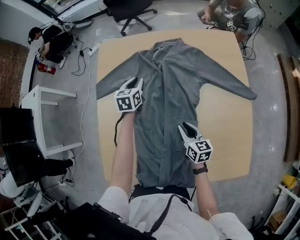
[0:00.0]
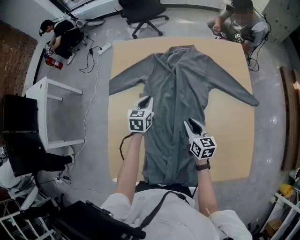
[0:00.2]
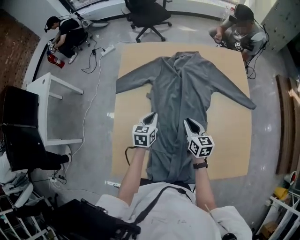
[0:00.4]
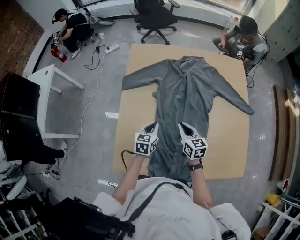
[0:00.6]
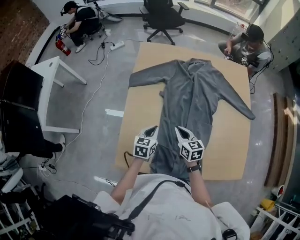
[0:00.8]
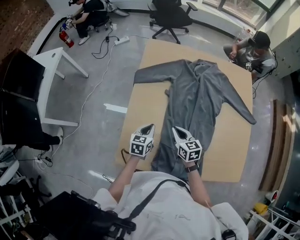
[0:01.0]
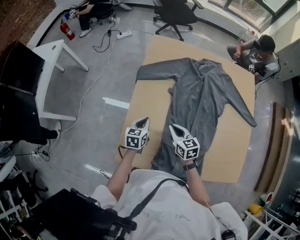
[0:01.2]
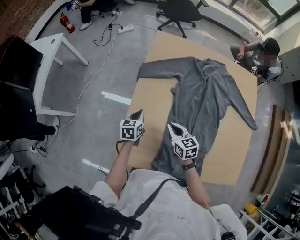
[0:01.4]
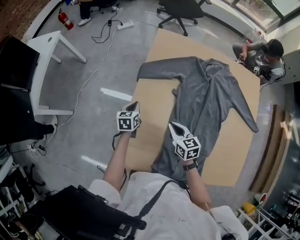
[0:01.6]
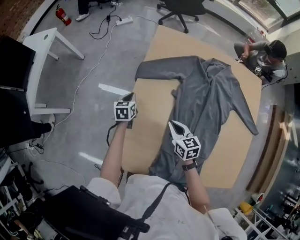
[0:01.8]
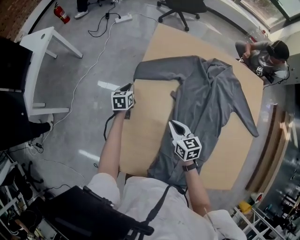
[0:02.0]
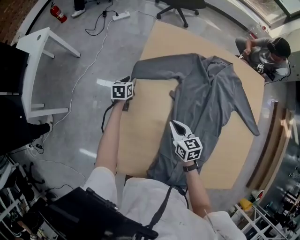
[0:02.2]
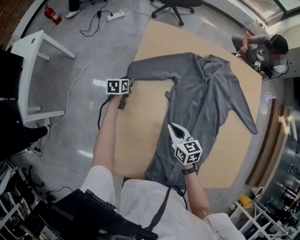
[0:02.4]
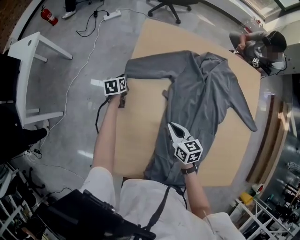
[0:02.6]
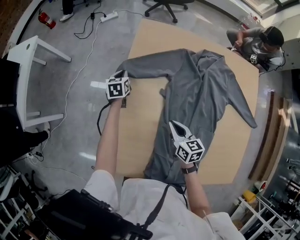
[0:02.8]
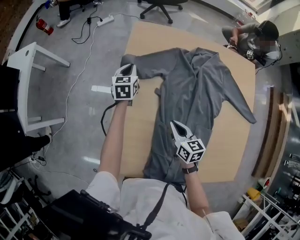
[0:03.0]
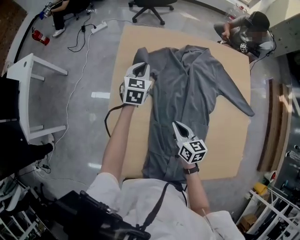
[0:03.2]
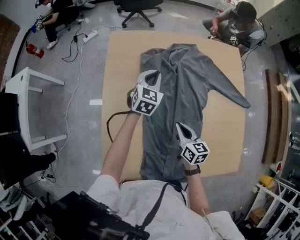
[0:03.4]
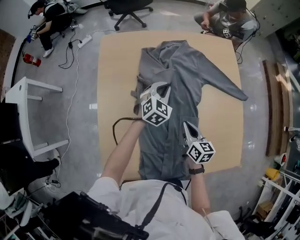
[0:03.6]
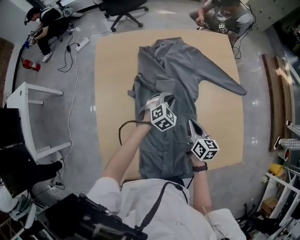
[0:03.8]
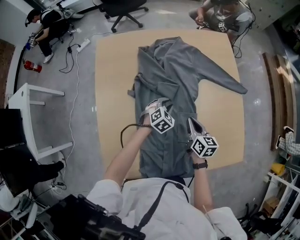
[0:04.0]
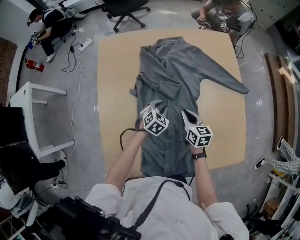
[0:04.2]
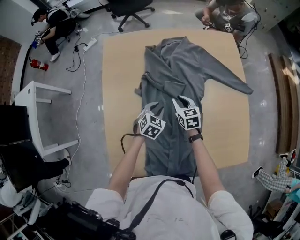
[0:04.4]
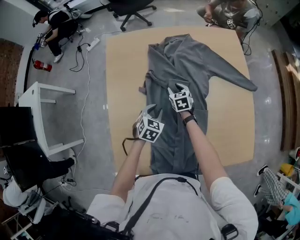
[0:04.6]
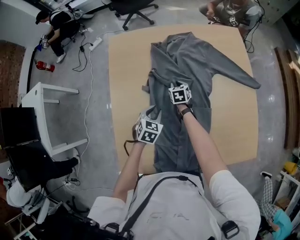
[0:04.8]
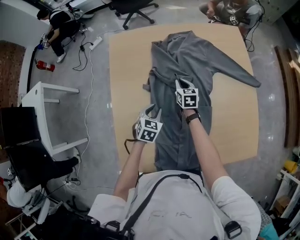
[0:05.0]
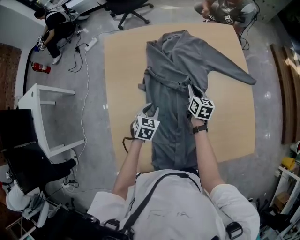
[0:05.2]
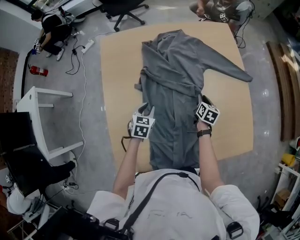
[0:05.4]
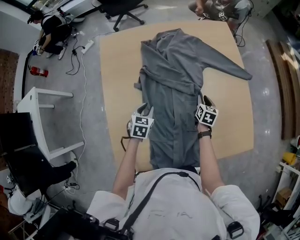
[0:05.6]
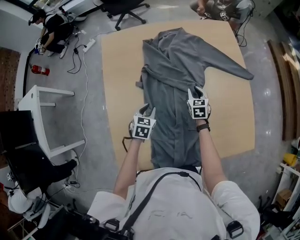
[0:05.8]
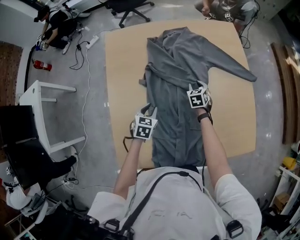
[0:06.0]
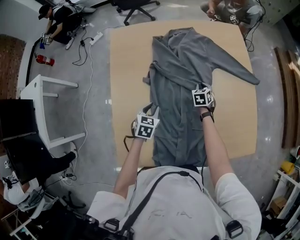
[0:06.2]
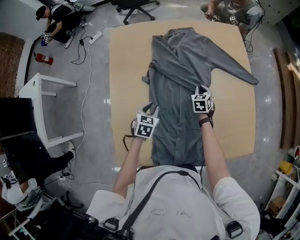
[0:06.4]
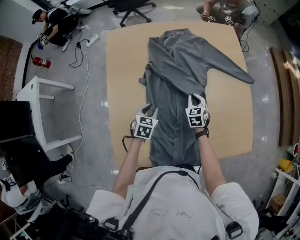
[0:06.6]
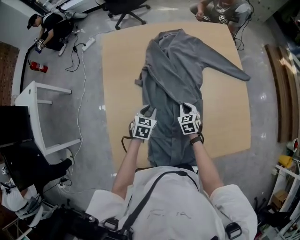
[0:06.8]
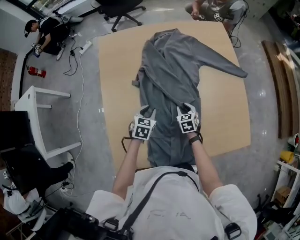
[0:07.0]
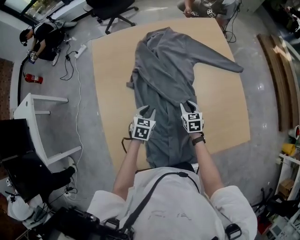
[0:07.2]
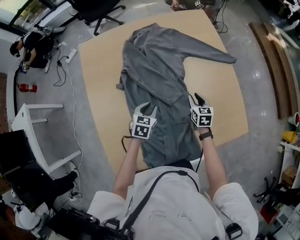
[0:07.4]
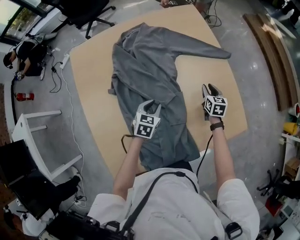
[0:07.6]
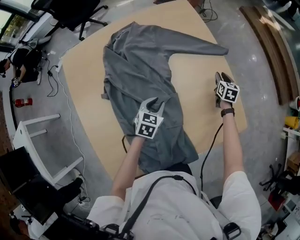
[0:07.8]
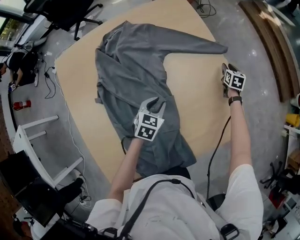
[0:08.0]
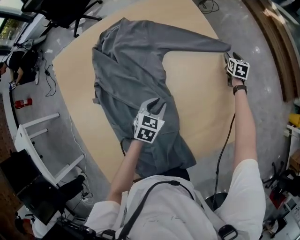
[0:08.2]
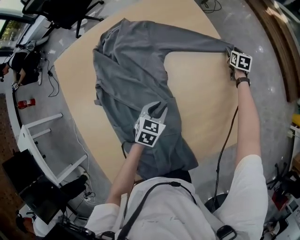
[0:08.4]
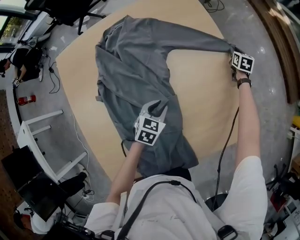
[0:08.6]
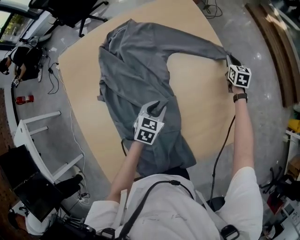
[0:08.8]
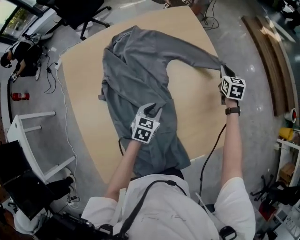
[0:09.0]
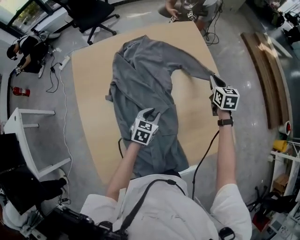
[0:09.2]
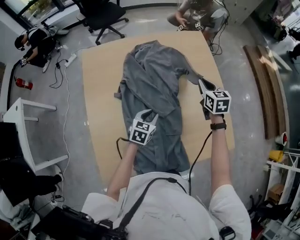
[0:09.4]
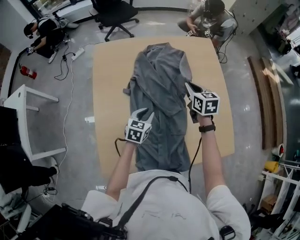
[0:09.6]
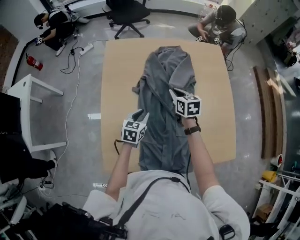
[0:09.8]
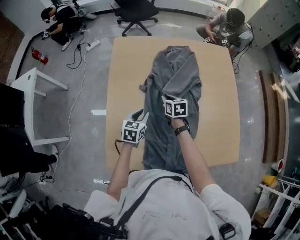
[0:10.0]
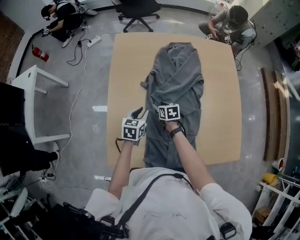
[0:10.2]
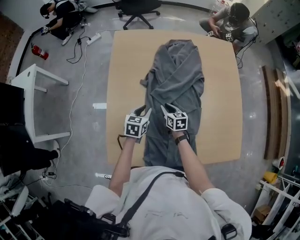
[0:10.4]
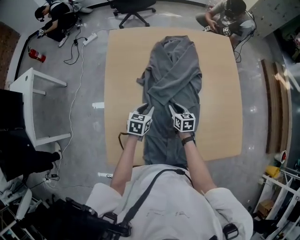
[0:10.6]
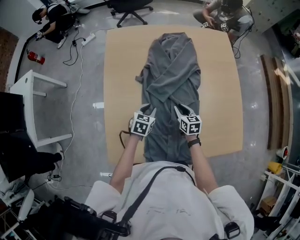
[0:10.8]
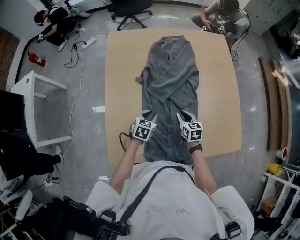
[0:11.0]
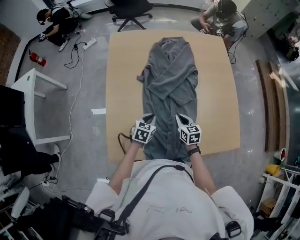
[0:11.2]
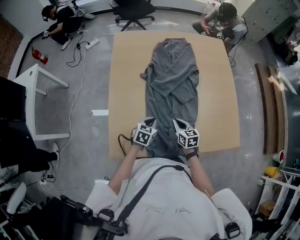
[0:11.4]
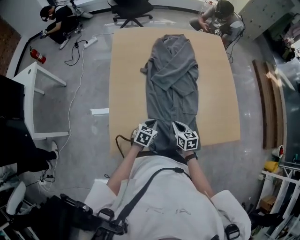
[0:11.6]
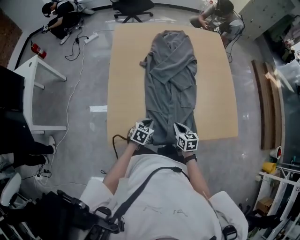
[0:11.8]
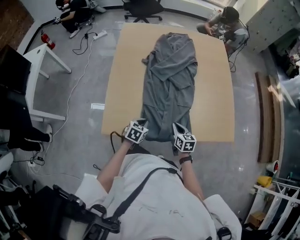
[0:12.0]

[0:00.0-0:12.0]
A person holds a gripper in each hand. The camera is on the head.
0:00.0 to 0:01.6: The right gripper goes some 25 cm to the left, and rotates roughly 30 degrees, while the left gripper moves to the left and backward, approximately 35 cm, and closes its fingers.
0:01.6 to 0:03.0: The right gripper goes about 10 cm to the right; the left gripper goes some 20 cm forward and to the right, and opens, then closes again.
0:03.0 to 0:04.4: The right gripper moves roughly 15 cm. The left gripper travels upward and back again, some 10 cm each way, rotates approximately 50 degrees, and opens up.
0:04.4 to 0:06.0: The right gripper moves left and right over approximately 20 cm, changing direction 2 times, and rotates approximately 20 degrees. The left gripper heads to the left and backward, covering some 10 cm.
0:06.0 to 0:07.6: The left gripper moves to the right, roughly 15 cm. The right gripper shifts some 25 cm to the right, and rotates about 30 degrees.
0:07.6 to 0:09.0: The right gripper goes approximately 20 cm forward and upward.
0:09.0 to 0:10.4: The right gripper ends up roughly 50 cm from where it was, and swivels roughly 40 degrees. The left gripper moves some 25 cm, and turns by roughly 30 degrees.
0:10.4 to 0:12.0: The right gripper heads backward and to the right, covering approximately 30 cm. The left gripper is displaced backward by some 25 cm, and closes its fingers.

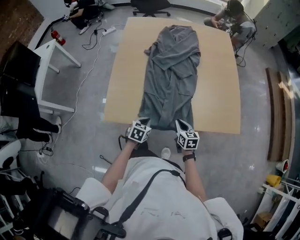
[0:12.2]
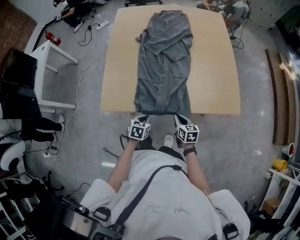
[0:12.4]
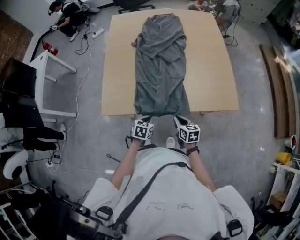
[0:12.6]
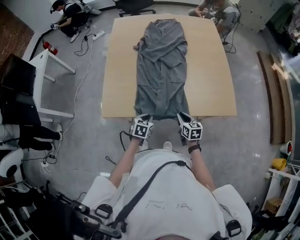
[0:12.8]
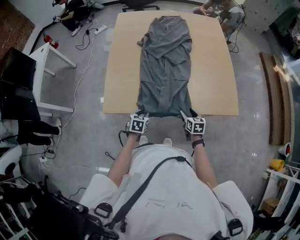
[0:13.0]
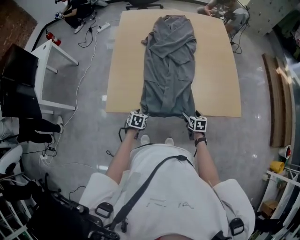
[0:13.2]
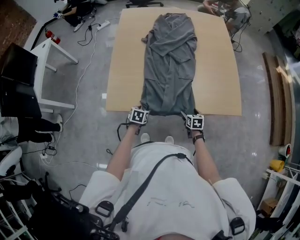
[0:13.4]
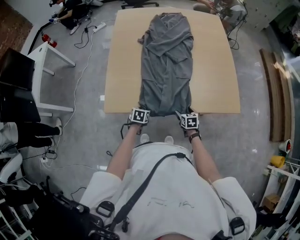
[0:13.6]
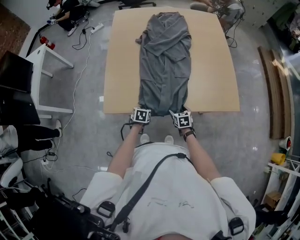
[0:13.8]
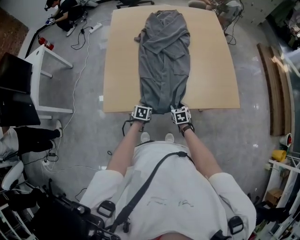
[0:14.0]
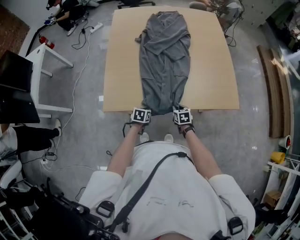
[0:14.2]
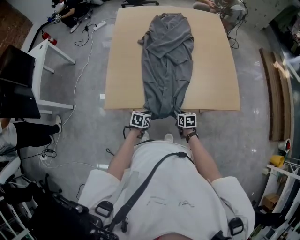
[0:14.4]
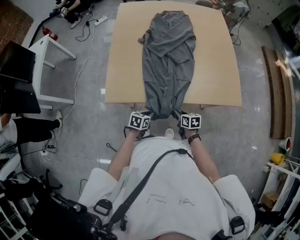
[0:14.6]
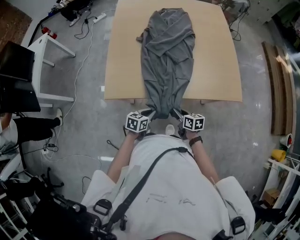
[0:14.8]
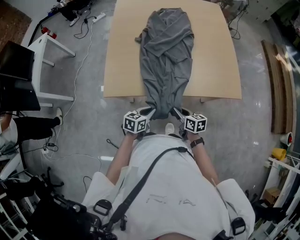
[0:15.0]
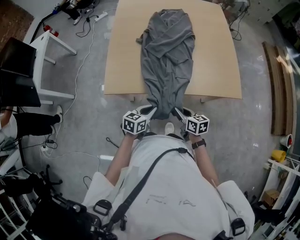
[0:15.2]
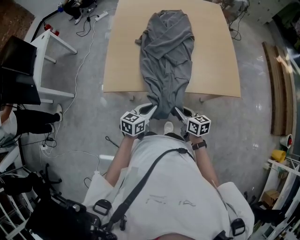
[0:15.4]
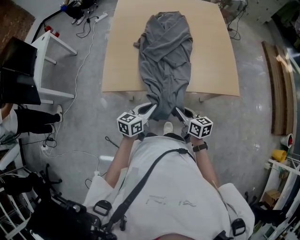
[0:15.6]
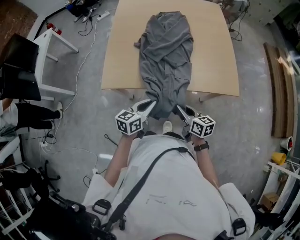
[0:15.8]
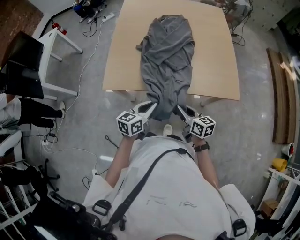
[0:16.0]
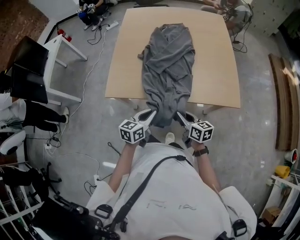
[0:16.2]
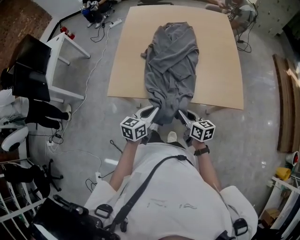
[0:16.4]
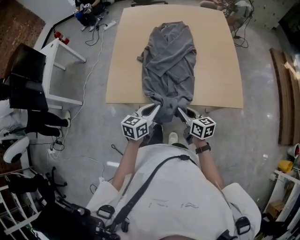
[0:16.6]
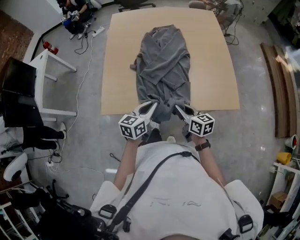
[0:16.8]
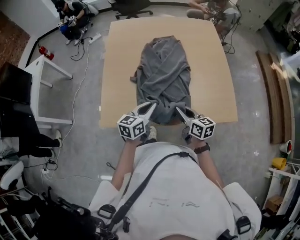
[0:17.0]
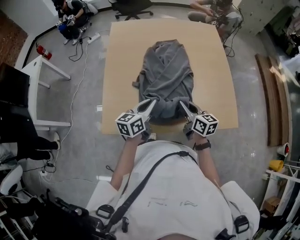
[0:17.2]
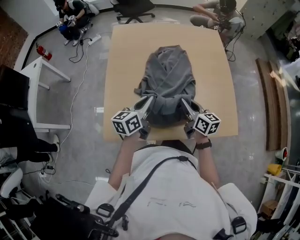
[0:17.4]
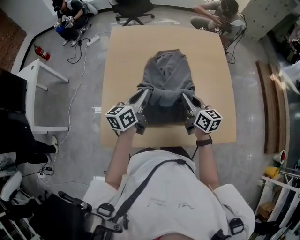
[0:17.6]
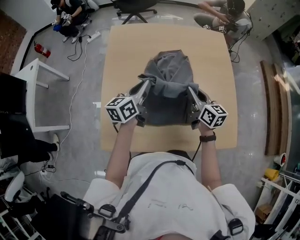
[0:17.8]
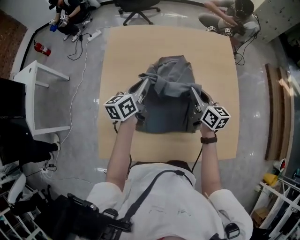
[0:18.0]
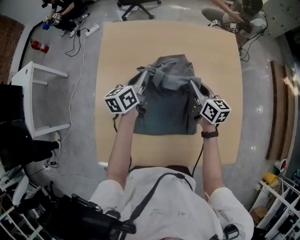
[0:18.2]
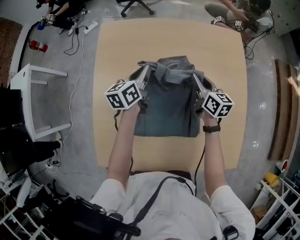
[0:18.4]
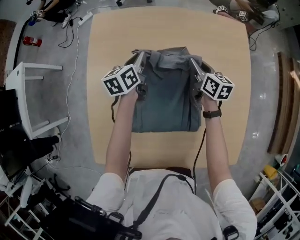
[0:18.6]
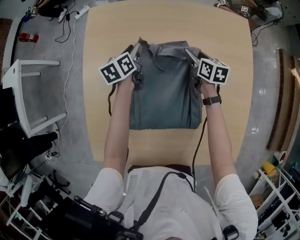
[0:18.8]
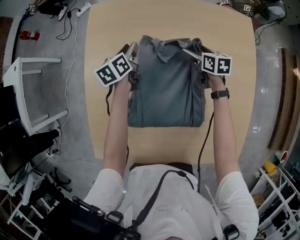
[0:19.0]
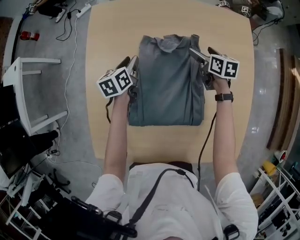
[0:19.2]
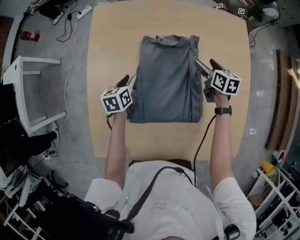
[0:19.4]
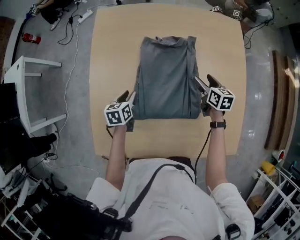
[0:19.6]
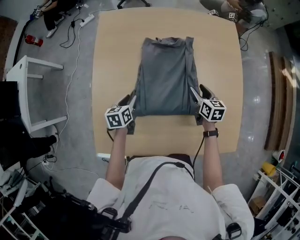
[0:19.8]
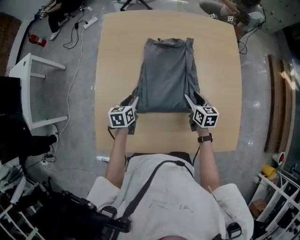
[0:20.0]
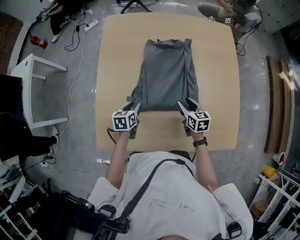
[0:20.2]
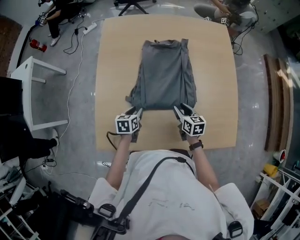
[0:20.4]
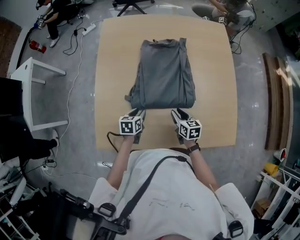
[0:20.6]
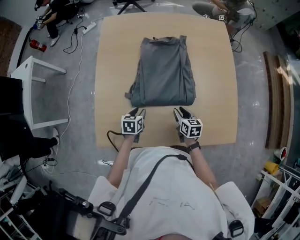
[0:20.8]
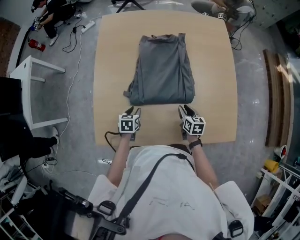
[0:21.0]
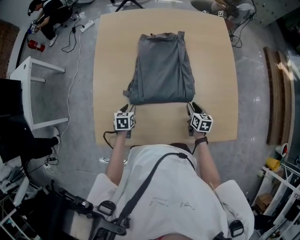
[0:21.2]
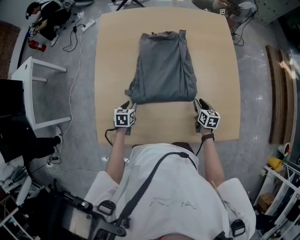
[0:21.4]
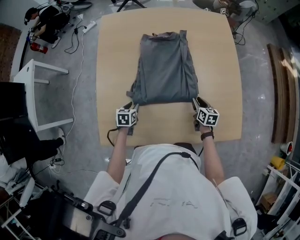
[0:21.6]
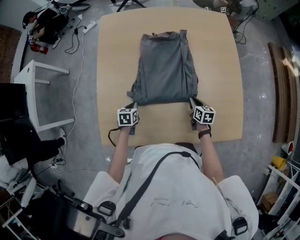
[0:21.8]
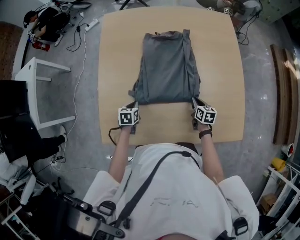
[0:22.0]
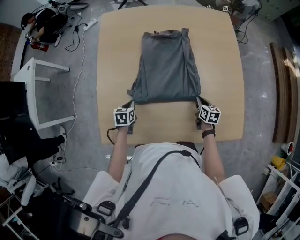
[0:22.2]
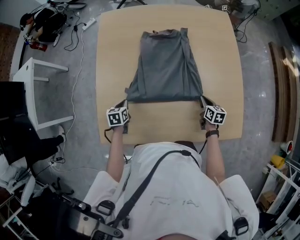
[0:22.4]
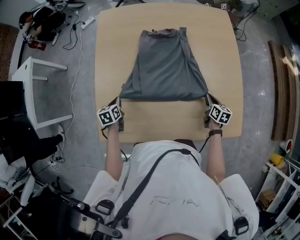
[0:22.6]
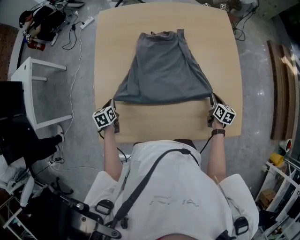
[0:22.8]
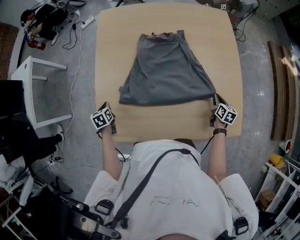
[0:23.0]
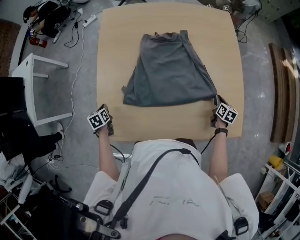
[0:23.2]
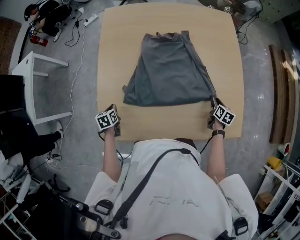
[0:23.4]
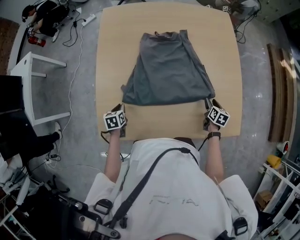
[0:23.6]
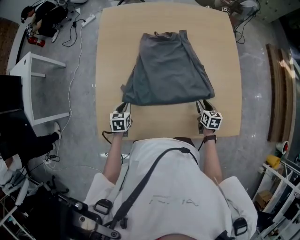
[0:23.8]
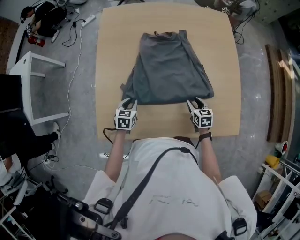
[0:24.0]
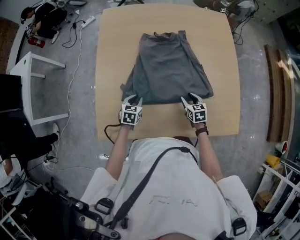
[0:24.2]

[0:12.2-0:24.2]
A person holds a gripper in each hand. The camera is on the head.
0:12.2 to 0:13.8: The grippers both shift downward by some 10 cm. The right gripper opens. Meanwhile the left gripper goes to the right and returns, roughly 5 cm each way, and opens.
0:13.8 to 0:15.2: The right gripper shifts roughly 15 cm upward and backward, swivels some 30 degrees, and closes up, while the left gripper shifts about 20 cm upward, backward and to the right, rotates about 30 degrees, and closes its fingers.
0:15.2 to 0:16.6: The grippers both shift upward and forward by about 10 cm.
0:16.6 to 0:18.2: The two grippers travel together, forward, approximately 50 cm.
0:18.2 to 0:19.8: The right gripper shifts roughly 10 cm downward, goes forward and returns, roughly 15 cm each way, and opens up. Meanwhile the left gripper moves downward, backward and to the left, roughly 25 cm, rotates some 30 degrees, and opens.
0:19.8 to 0:21.2: The grippers both shift backward and downward by some 15 cm.
0:21.2 to 0:22.6: The right gripper travels to the right by some 10 cm, while the left gripper goes approximately 10 cm to the left, and closes its fingers.
0:22.6 to 0:24.2: The left gripper moves to the right, some 15 cm, rotates about 30 degrees, and opens up. The right gripper moves to the left, about 15 cm, rotates about 30 degrees, and opens its fingers.
